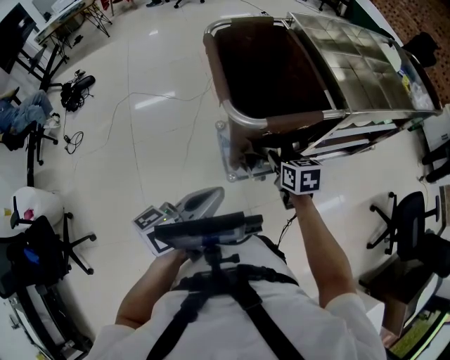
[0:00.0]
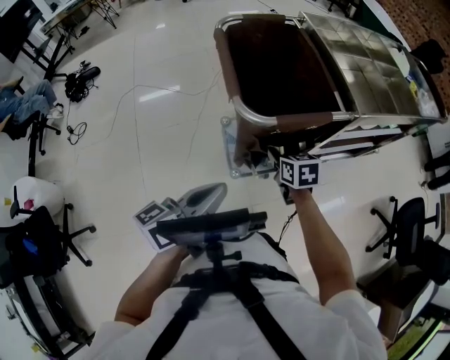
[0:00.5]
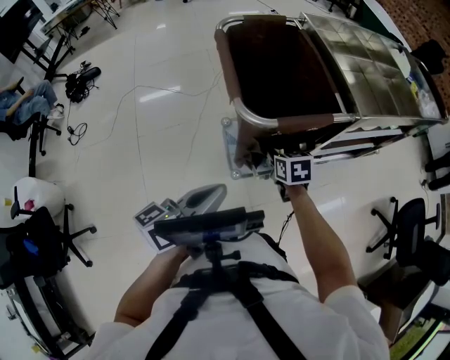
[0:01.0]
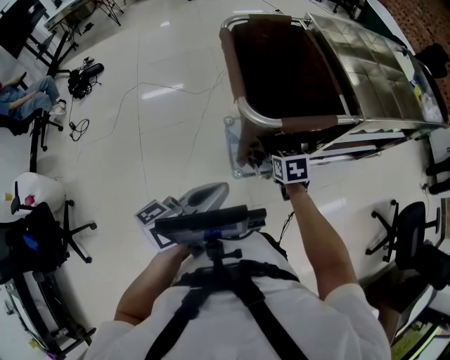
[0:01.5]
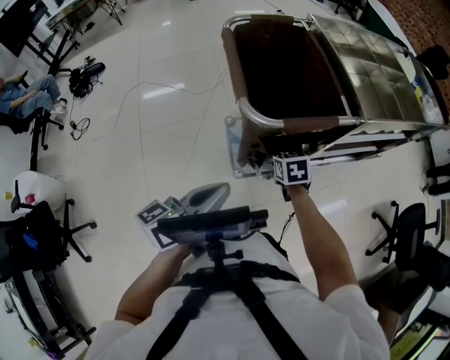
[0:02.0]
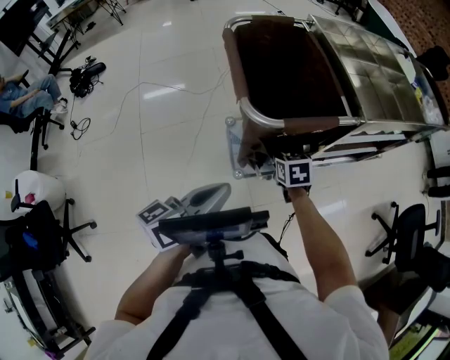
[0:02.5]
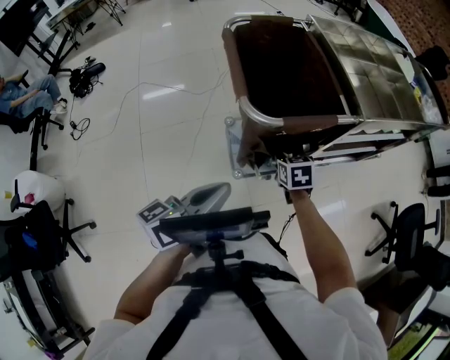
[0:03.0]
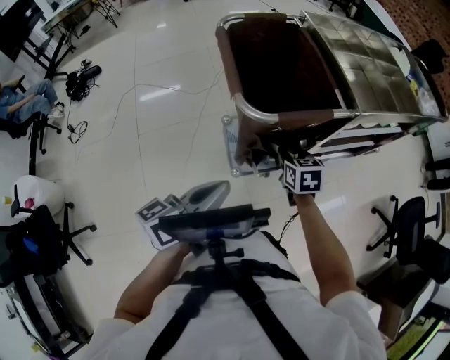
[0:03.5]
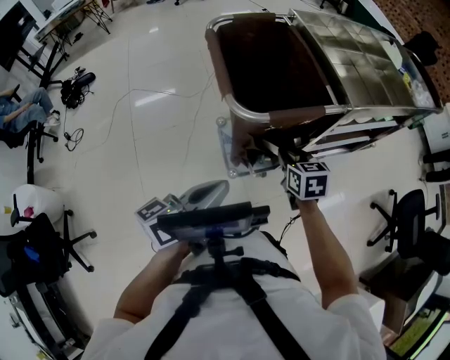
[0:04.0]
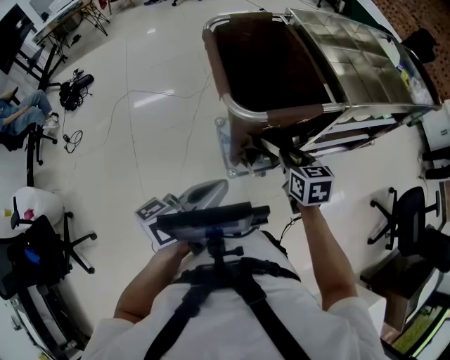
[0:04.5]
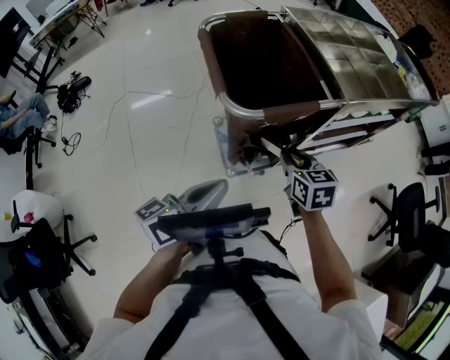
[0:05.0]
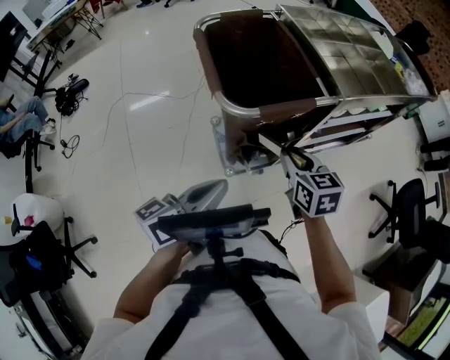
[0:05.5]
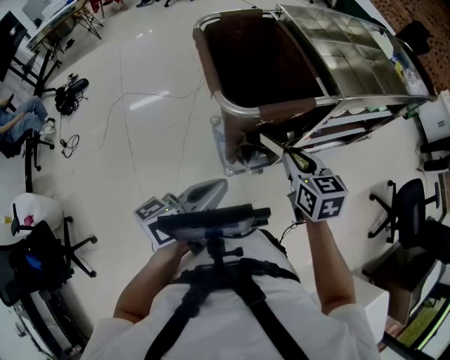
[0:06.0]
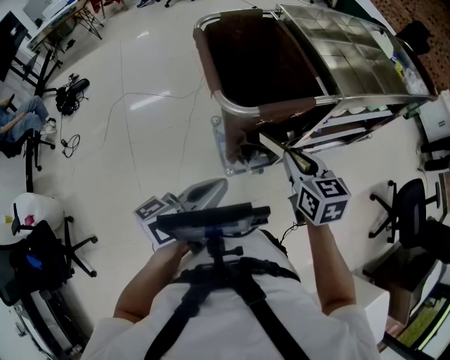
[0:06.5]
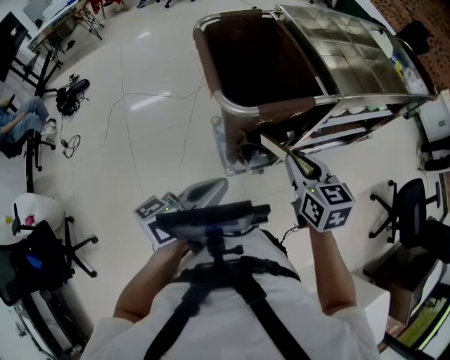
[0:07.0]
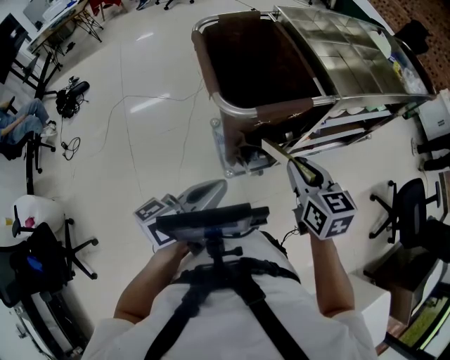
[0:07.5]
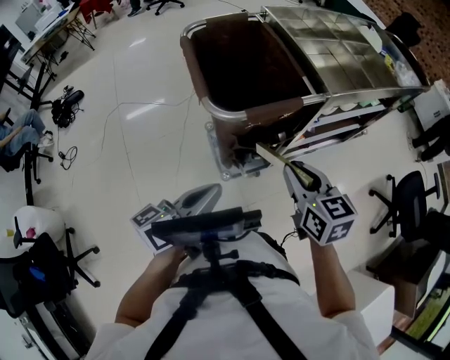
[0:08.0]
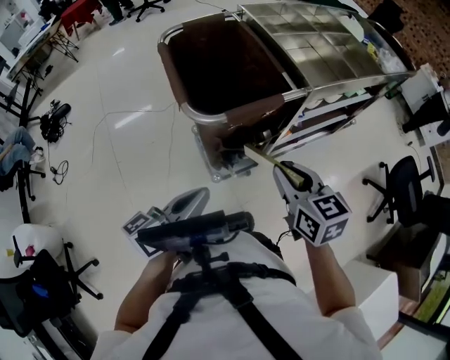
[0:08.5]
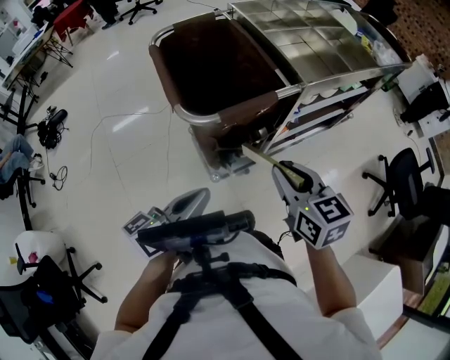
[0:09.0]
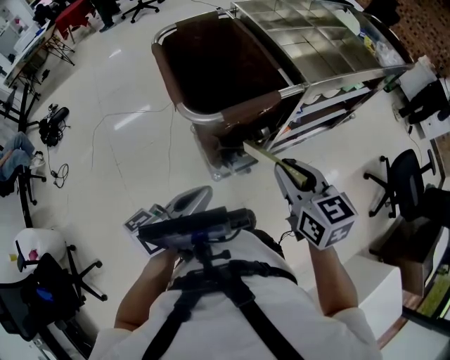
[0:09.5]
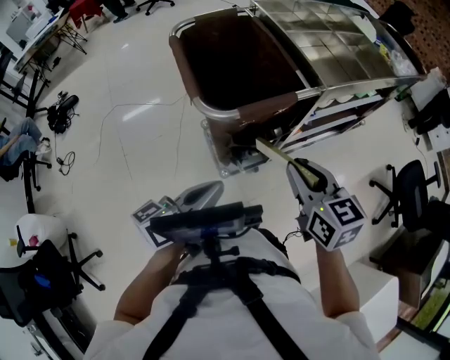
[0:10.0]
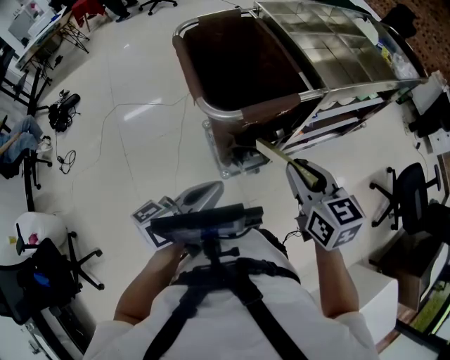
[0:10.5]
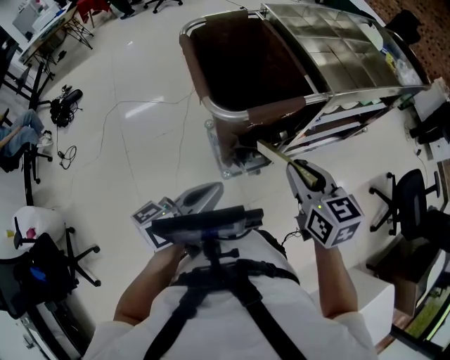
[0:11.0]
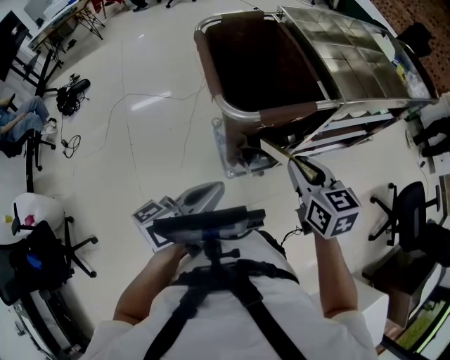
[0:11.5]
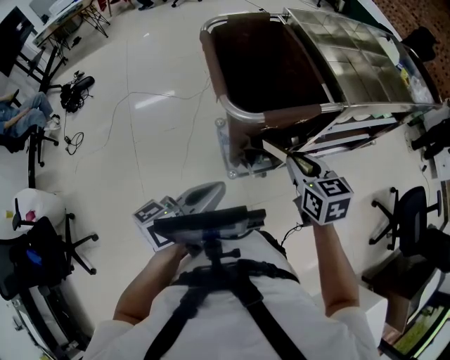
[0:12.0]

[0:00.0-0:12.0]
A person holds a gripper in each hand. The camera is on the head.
0:00.0 to 0:02.0: The right gripper travels downward by roughly 5 cm.
0:02.0 to 0:04.0: The right gripper heads upward, covering approximately 10 cm.
0:04.0 to 0:06.0: The right gripper heads upward, covering some 10 cm.
0:06.0 to 0:08.0: The right gripper moves roughly 5 cm.
0:08.0 to 0:10.0: The grippers move only a little.
0:10.0 to 0:12.0: The right gripper heads downward and forward, covering roughly 10 cm.

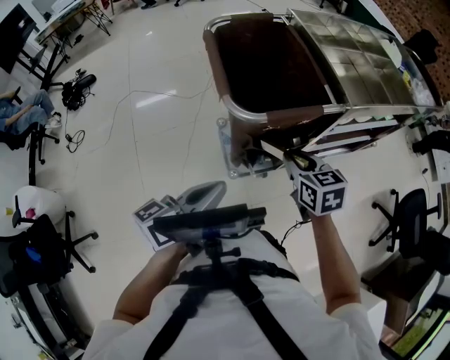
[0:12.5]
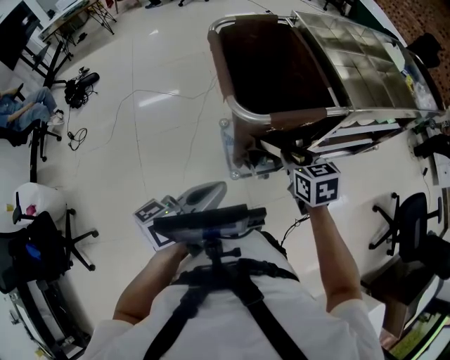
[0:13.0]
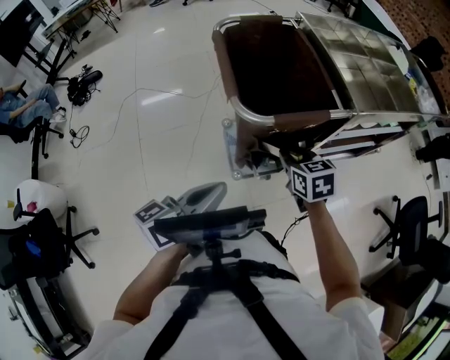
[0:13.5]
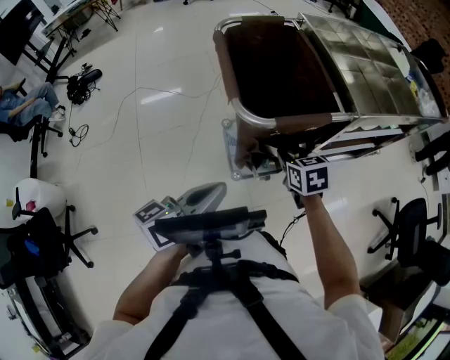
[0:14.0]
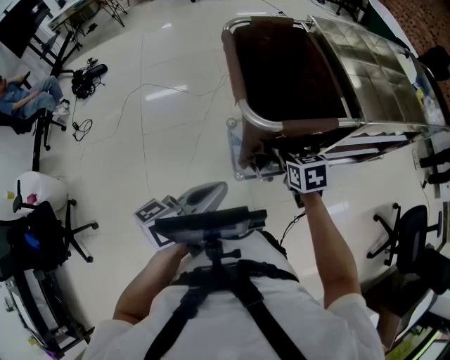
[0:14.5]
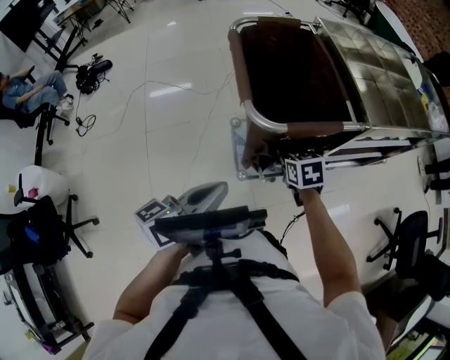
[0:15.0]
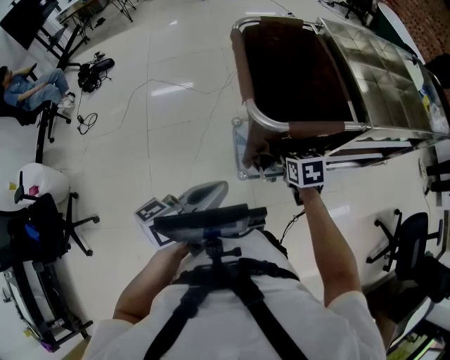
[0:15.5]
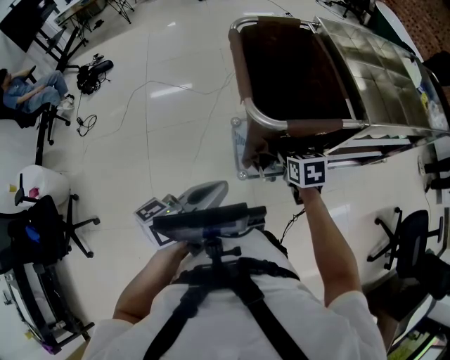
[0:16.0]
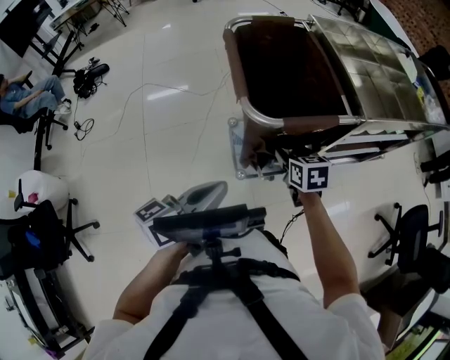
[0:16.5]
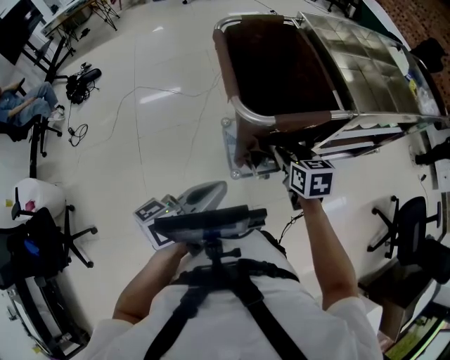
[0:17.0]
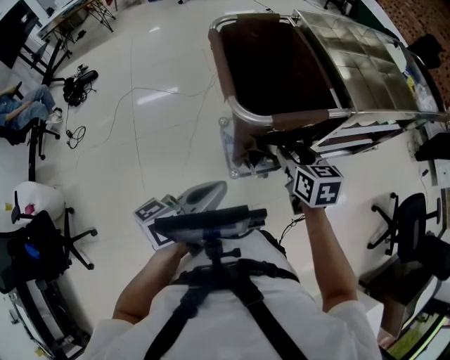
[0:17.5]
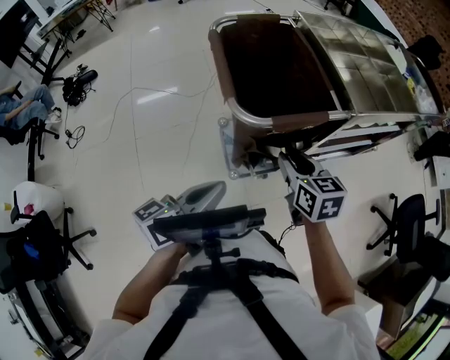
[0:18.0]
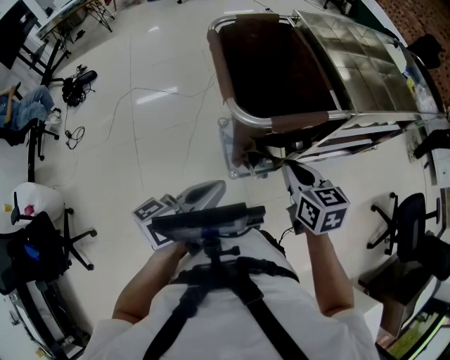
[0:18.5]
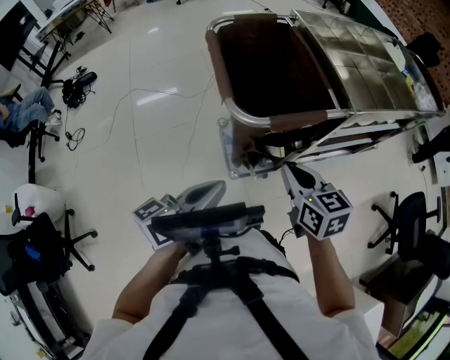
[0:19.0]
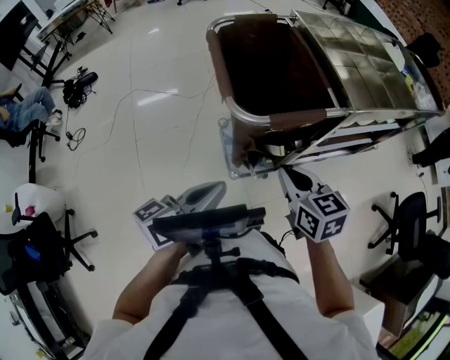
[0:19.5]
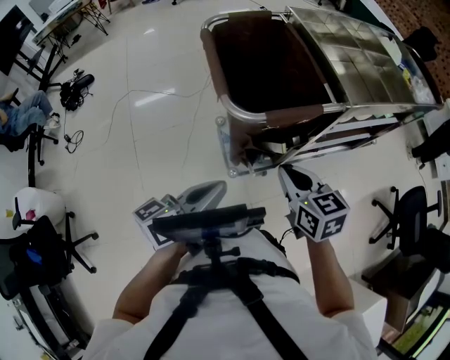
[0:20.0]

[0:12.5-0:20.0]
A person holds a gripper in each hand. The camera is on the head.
0:12.5 to 0:14.5: The right gripper goes roughly 10 cm downward and forward.
0:14.5 to 0:16.5: The right gripper opens up.
0:16.5 to 0:18.0: The right gripper travels upward by approximately 10 cm, and closes its fingers.
0:18.0 to 0:20.0: The right gripper shifts roughly 5 cm backward, and closes up.

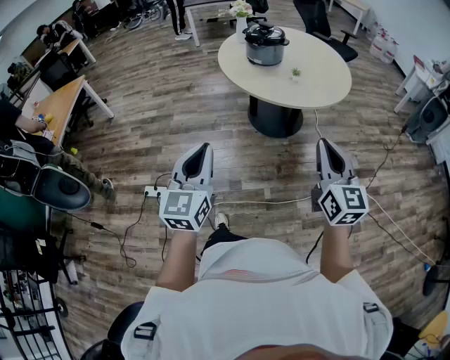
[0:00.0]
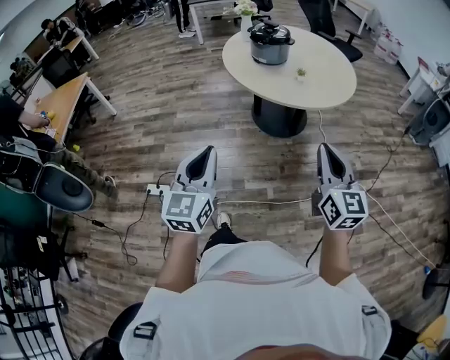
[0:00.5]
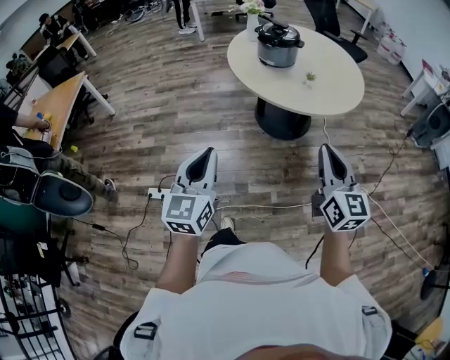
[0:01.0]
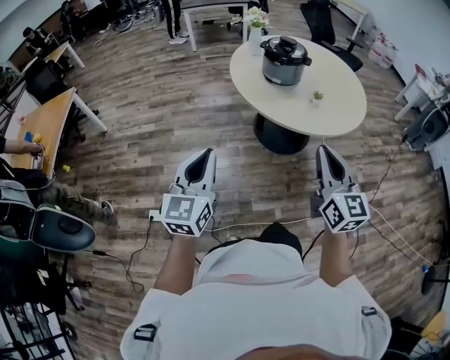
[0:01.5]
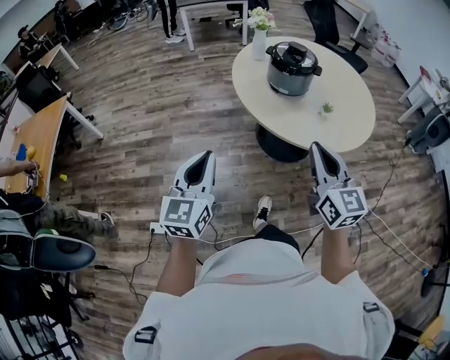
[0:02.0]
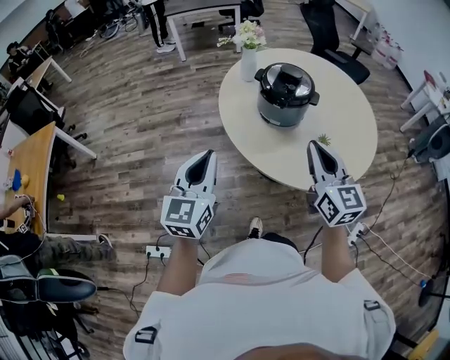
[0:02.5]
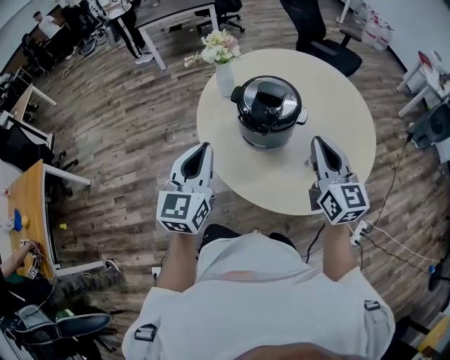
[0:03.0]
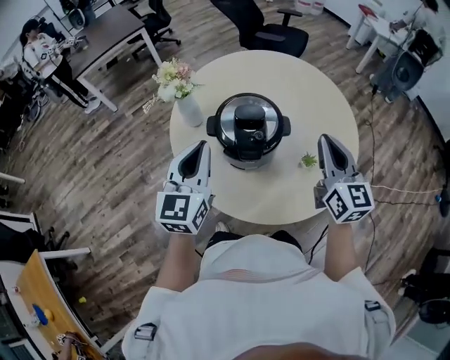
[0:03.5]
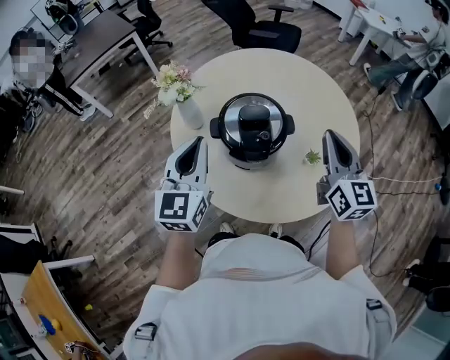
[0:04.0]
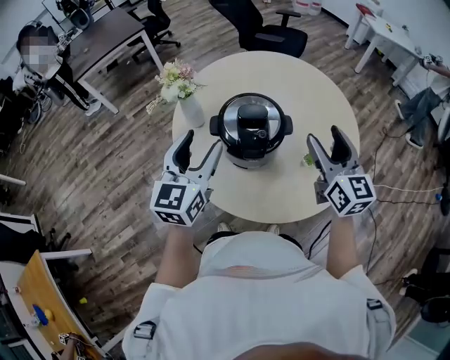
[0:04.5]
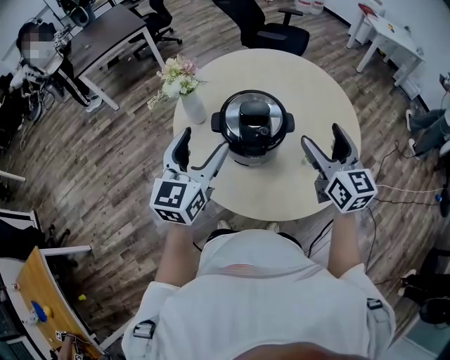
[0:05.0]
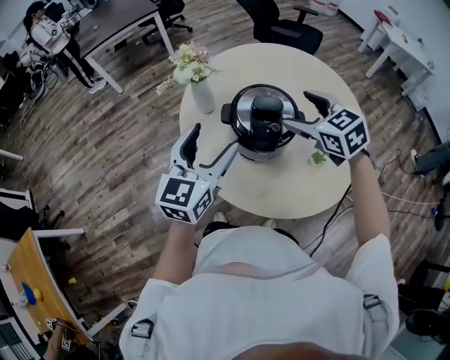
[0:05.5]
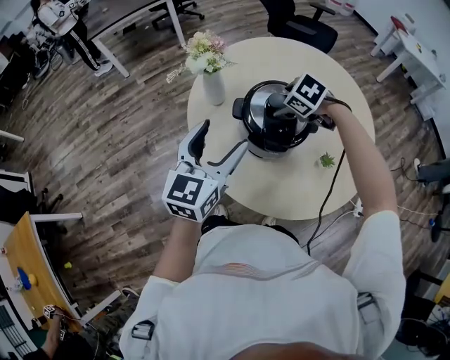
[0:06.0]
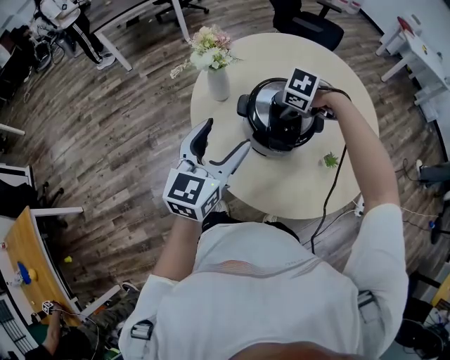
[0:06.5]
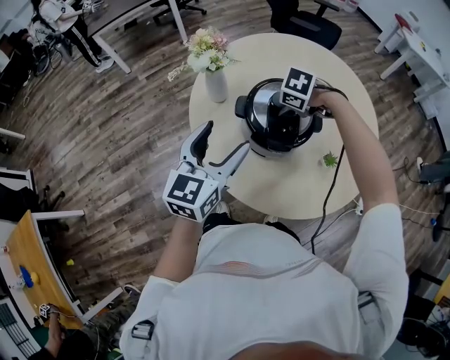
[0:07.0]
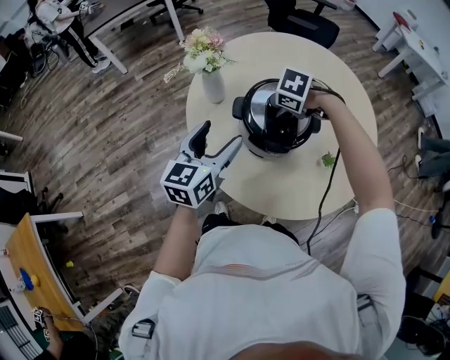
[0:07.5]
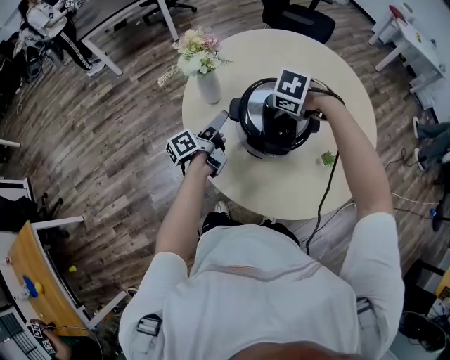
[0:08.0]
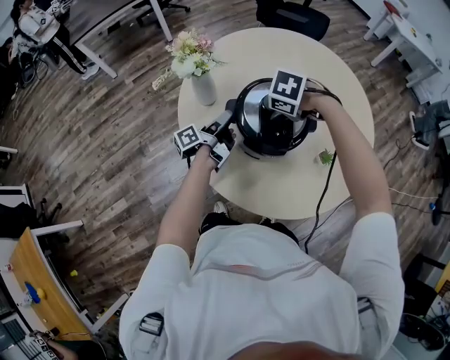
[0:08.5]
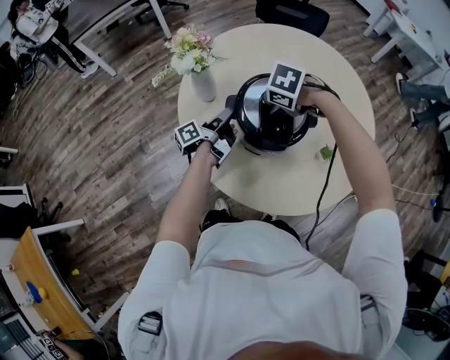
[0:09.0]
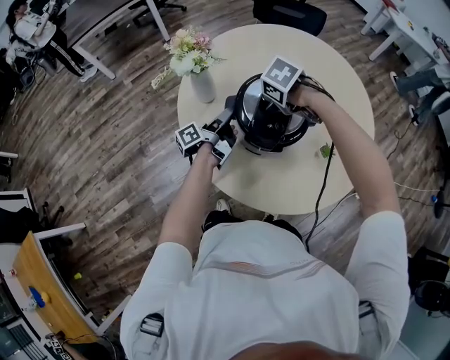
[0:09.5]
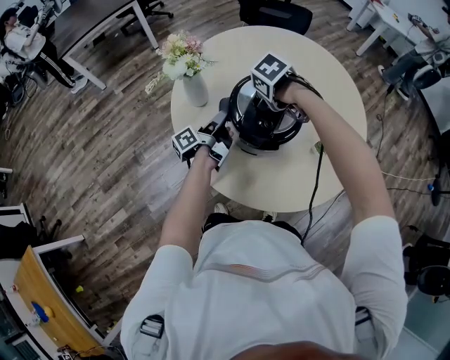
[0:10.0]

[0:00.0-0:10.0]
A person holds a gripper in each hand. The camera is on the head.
0:00.0 to 0:02.0: The grippers both shift forward and to the left by about 40 cm.
0:02.0 to 0:04.0: The two grippers travel together, roughly 60 cm. The right gripper turns by roughly 40 degrees; the left gripper turns by about 30 degrees.
0:04.0 to 0:06.0: The right gripper moves downward, to the left and forward, roughly 30 cm, angles its fingers downward, by approximately 70 degrees, and opens its fingers. The left gripper opens its fingers.
0:06.0 to 0:08.0: The left gripper travels downward by about 20 cm, and twists some 70 degrees counterclockwise, seen from behind.
0:08.0 to 0:10.0: The left gripper closes up; the right gripper swivels some 30 degrees.
